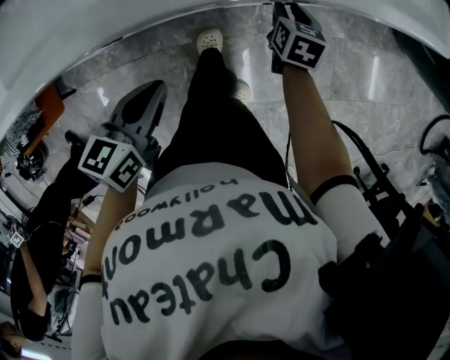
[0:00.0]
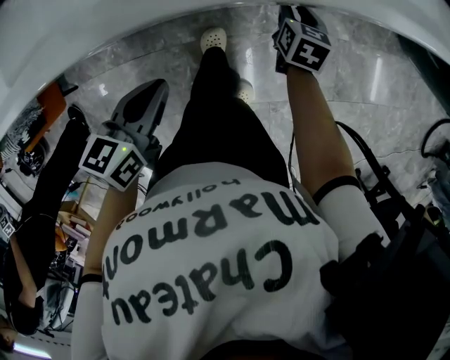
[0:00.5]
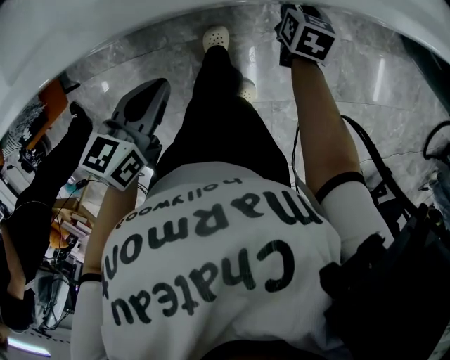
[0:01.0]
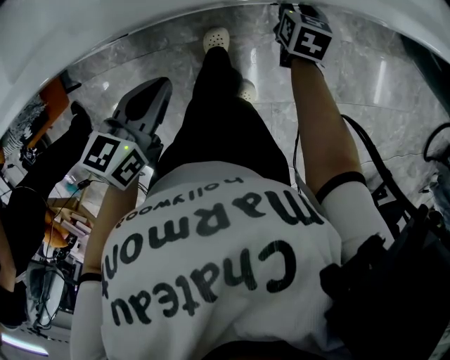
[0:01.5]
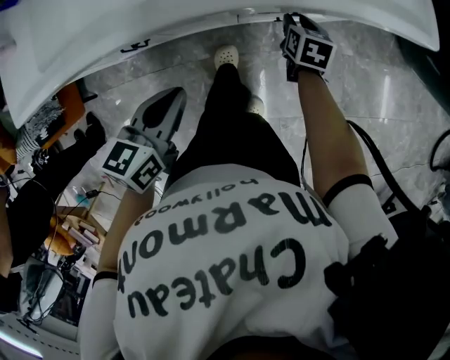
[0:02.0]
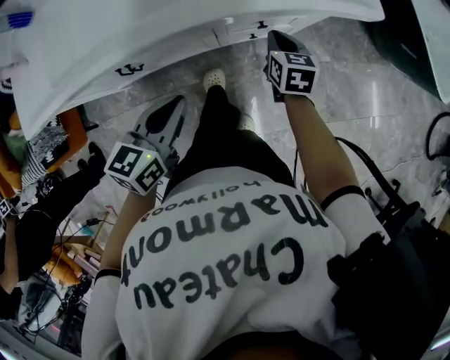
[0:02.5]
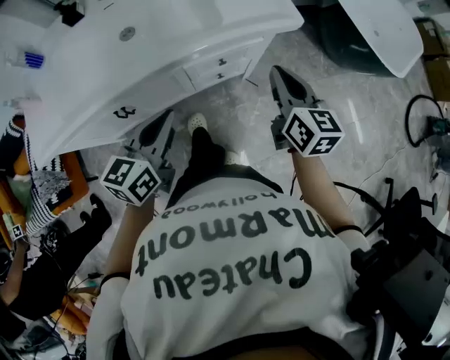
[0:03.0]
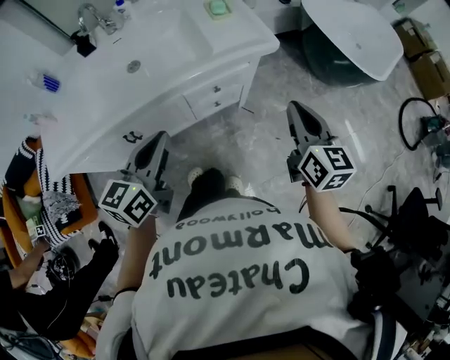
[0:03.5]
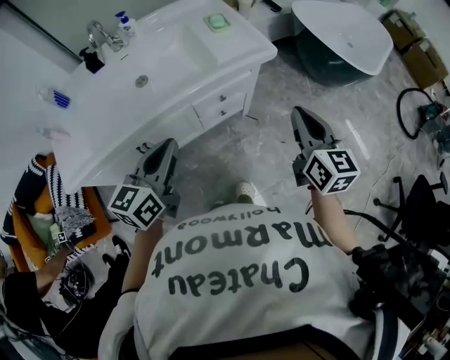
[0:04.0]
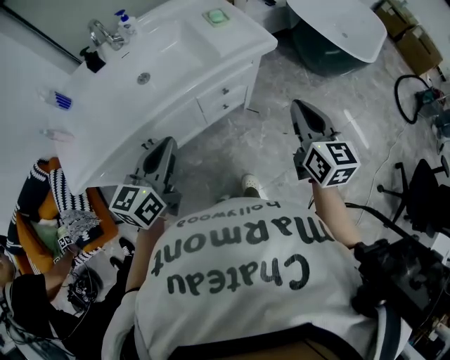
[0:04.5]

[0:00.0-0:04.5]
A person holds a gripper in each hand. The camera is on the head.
0:00.0 to 0:02.0: The grippers make only small movements.
0:02.0 to 0:04.5: The left gripper heads upward, covering about 25 cm, and turns by some 30 degrees, while the right gripper moves upward and backward, approximately 50 cm, angles its fingers upward, by some 40 degrees, and closes up.

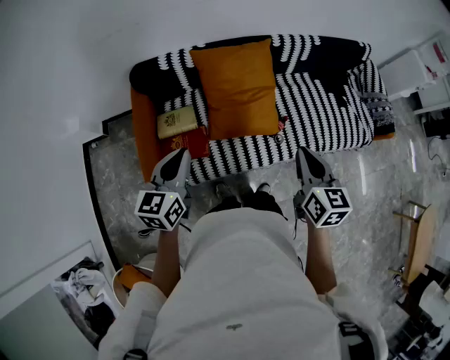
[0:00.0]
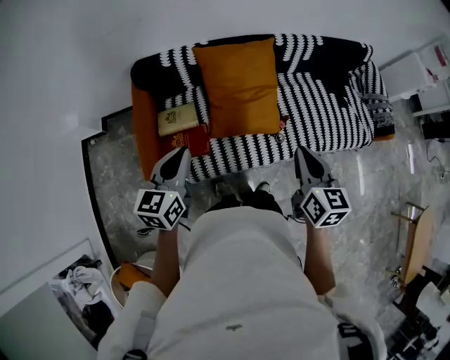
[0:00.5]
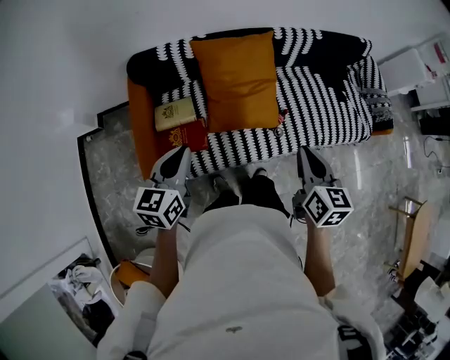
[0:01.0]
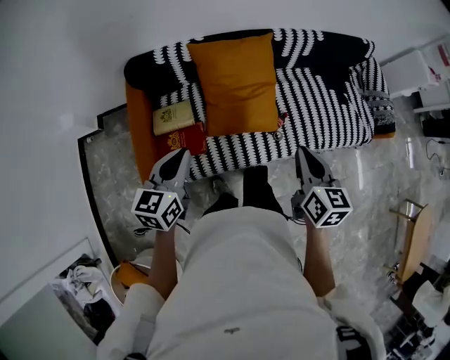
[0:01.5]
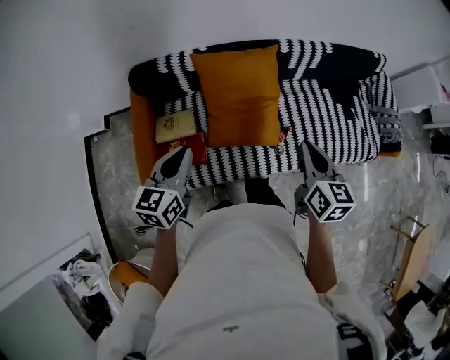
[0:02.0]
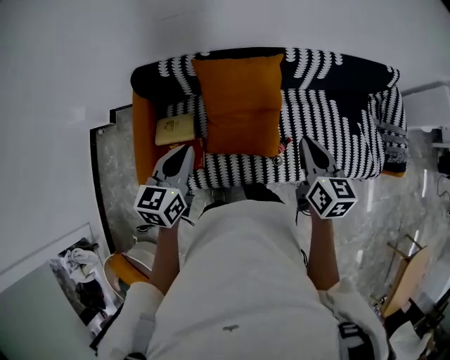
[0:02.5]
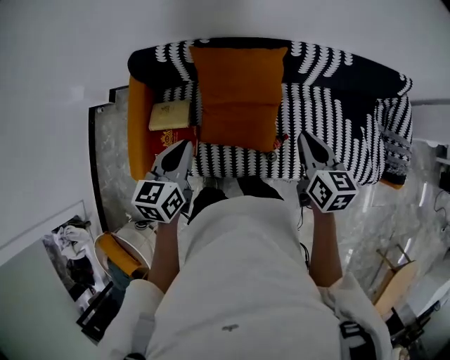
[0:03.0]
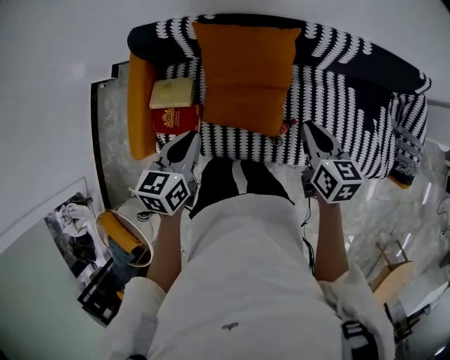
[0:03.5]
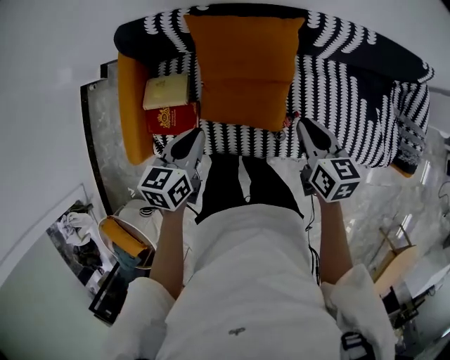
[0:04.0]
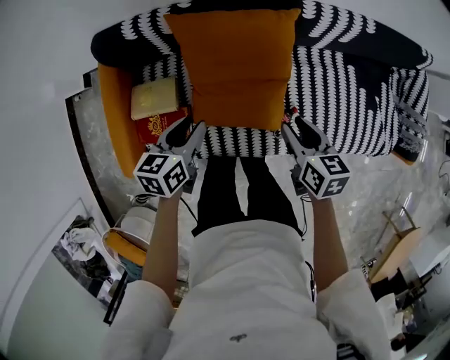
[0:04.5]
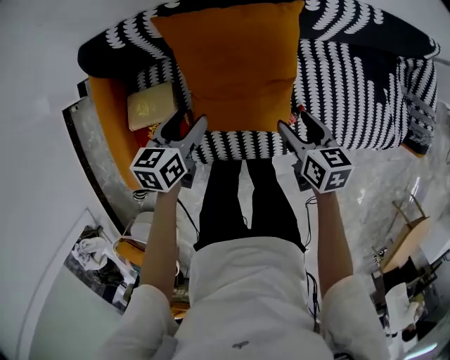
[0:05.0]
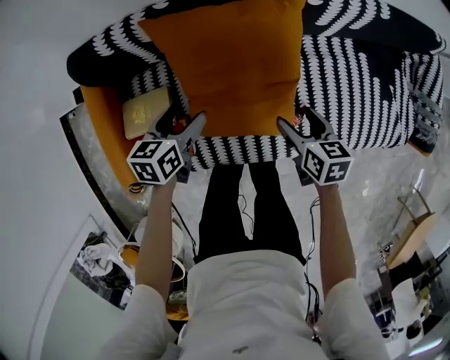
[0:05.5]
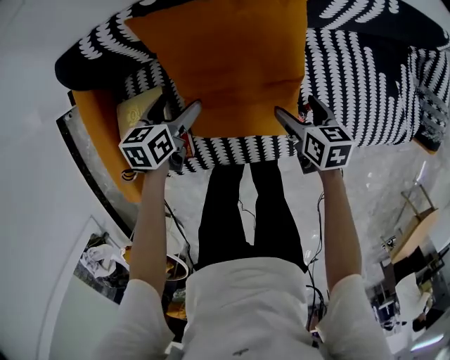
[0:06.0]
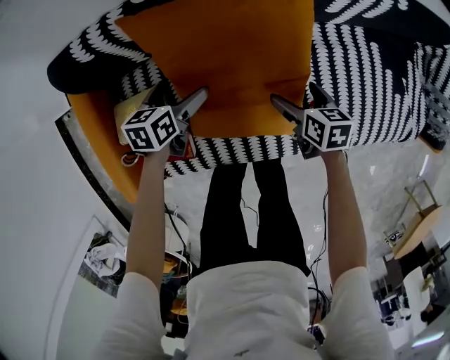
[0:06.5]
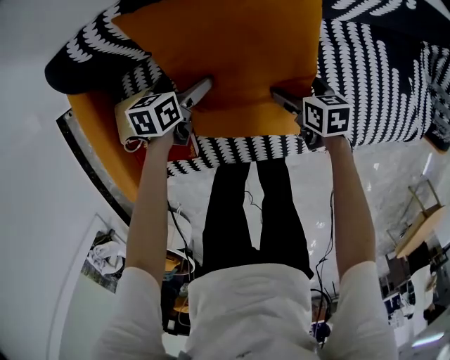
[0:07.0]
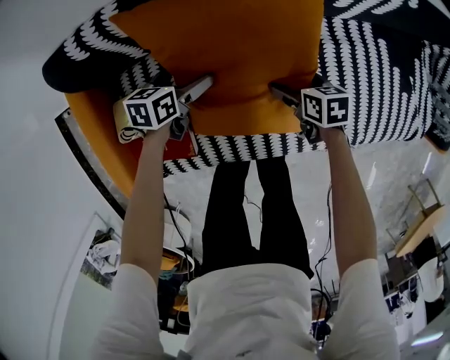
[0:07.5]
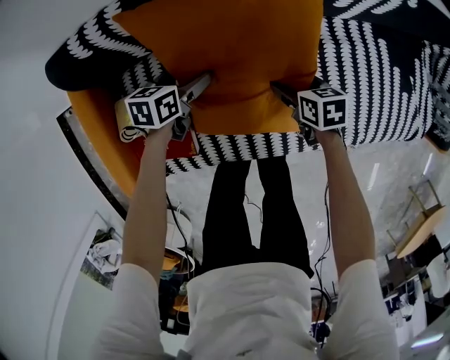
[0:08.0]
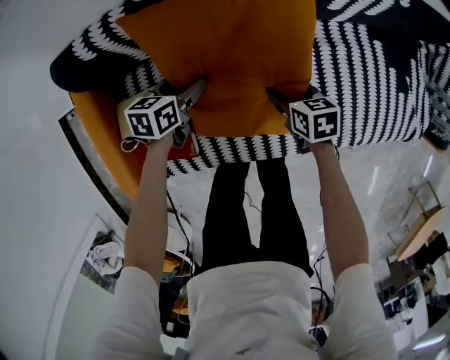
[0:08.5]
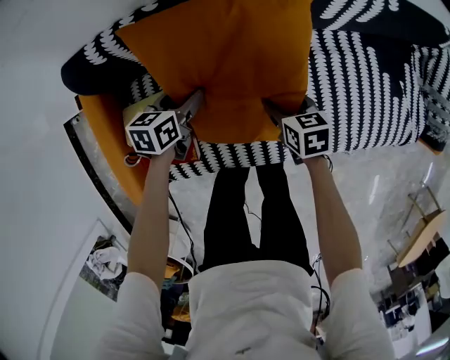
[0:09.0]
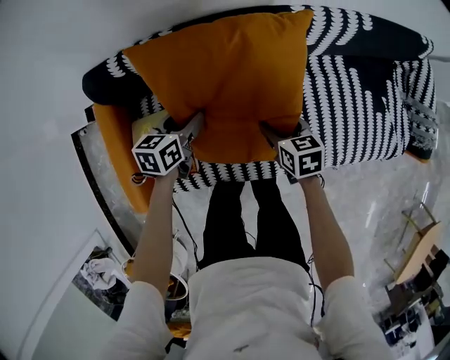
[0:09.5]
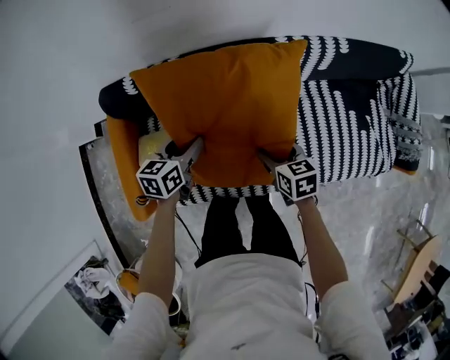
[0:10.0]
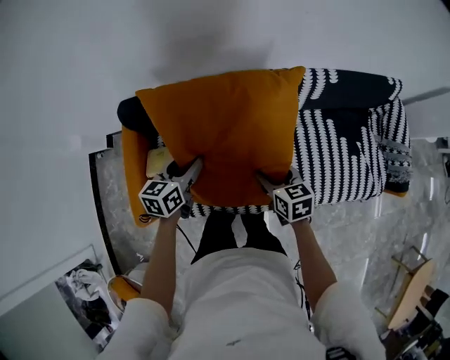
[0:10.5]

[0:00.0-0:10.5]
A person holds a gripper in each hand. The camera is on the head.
0:00.0 to 0:02.0: Both grippers travel together forward, some 10 cm.
0:02.0 to 0:04.0: The left gripper goes roughly 15 cm downward, to the right and forward, and swivels approximately 20 degrees. The right gripper moves downward and forward, approximately 20 cm, and turns by about 30 degrees.
0:04.0 to 0:06.5: The right gripper heads downward, covering roughly 30 cm, and opens, while the left gripper heads downward and forward, covering some 35 cm, and opens.
0:06.5 to 0:08.5: The right gripper closes its fingers. The left gripper closes.
0:08.5 to 0:10.5: Both grippers travel together upward, roughly 30 cm. The left gripper swivels some 20 degrees.

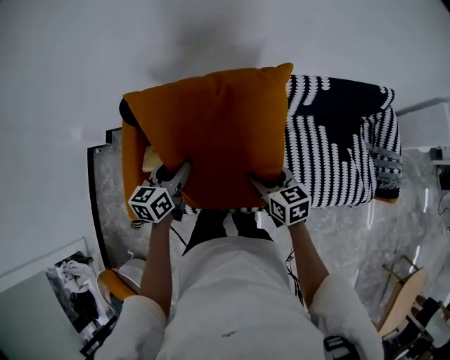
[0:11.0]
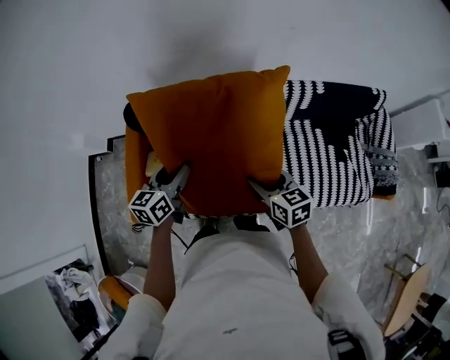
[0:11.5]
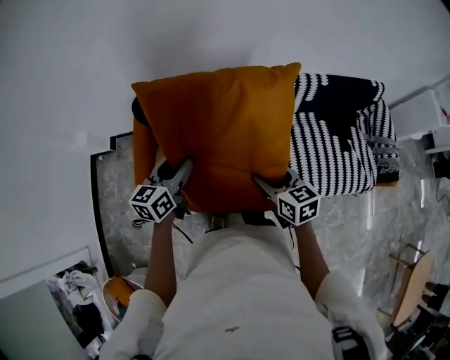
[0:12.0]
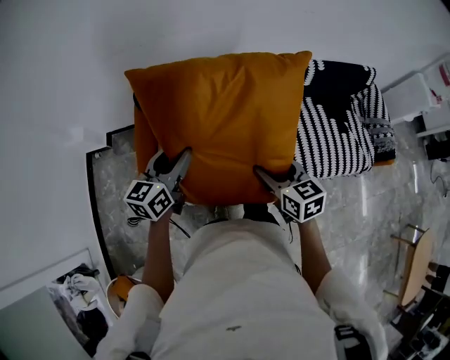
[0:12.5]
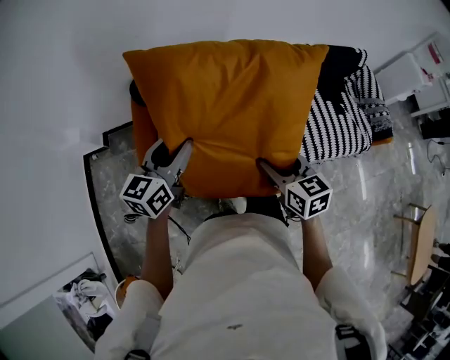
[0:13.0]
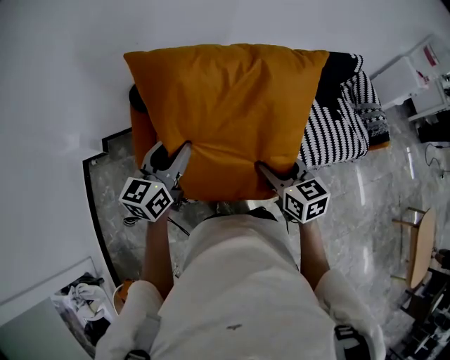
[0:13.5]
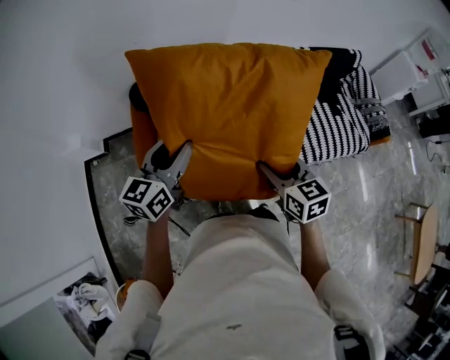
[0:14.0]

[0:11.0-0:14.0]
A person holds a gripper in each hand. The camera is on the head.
0:11.0 to 0:12.5: Both grippers travel together to the left, backward and upward, approximately 20 cm.
0:12.5 to 0:14.0: The left gripper ends up approximately 5 cm from where it was. The right gripper shifts roughly 5 cm backward.

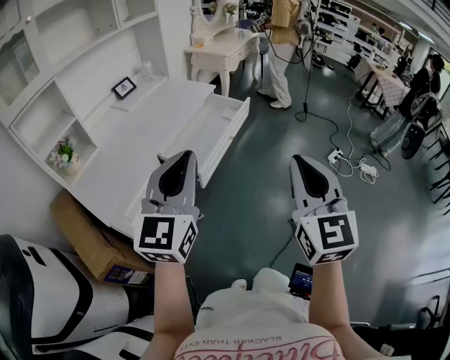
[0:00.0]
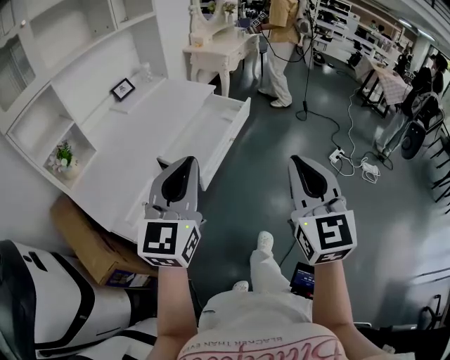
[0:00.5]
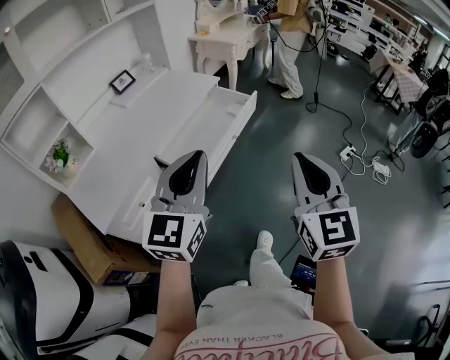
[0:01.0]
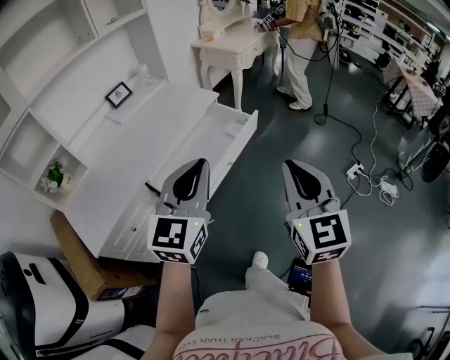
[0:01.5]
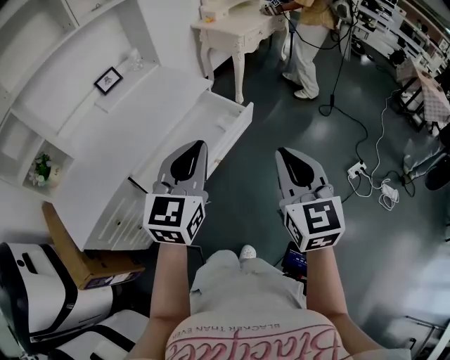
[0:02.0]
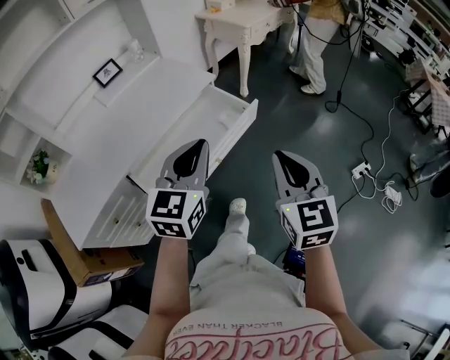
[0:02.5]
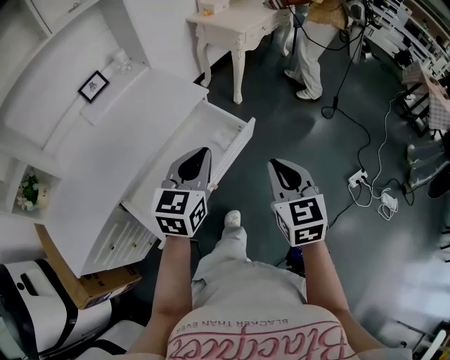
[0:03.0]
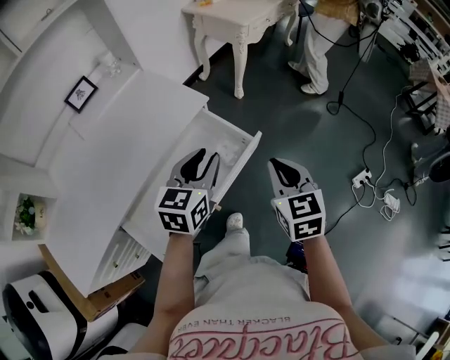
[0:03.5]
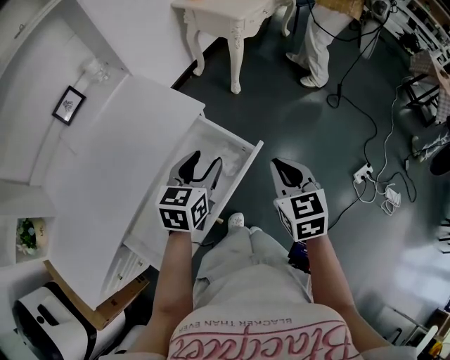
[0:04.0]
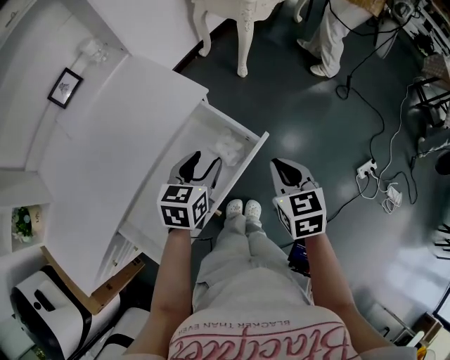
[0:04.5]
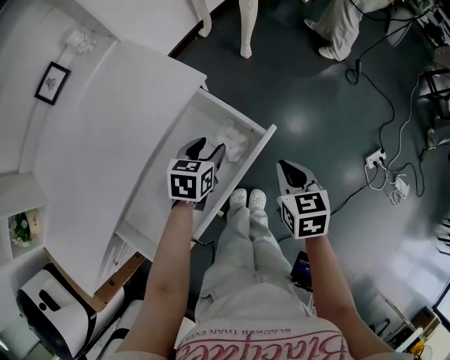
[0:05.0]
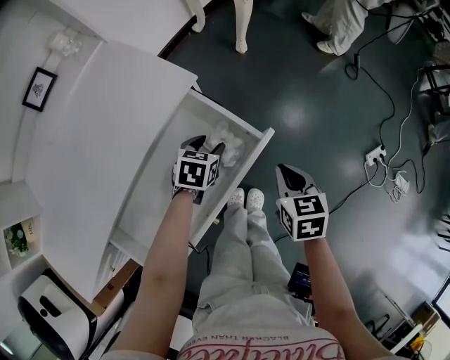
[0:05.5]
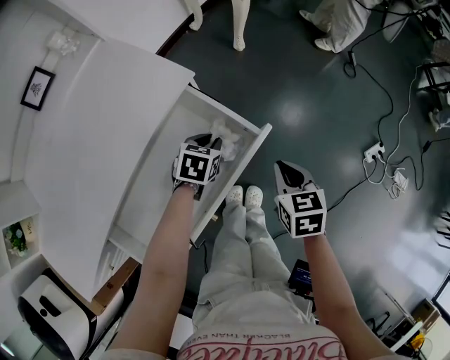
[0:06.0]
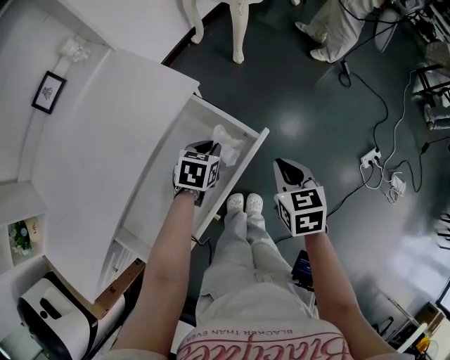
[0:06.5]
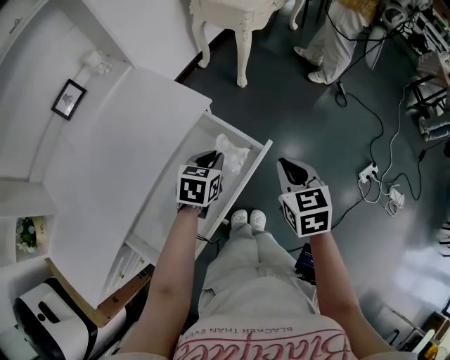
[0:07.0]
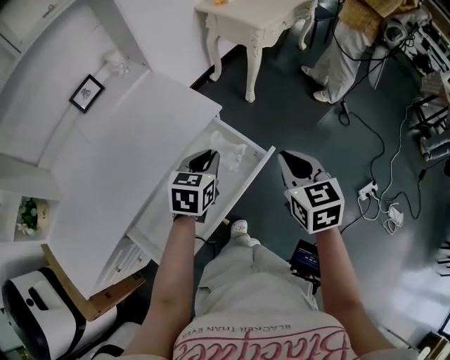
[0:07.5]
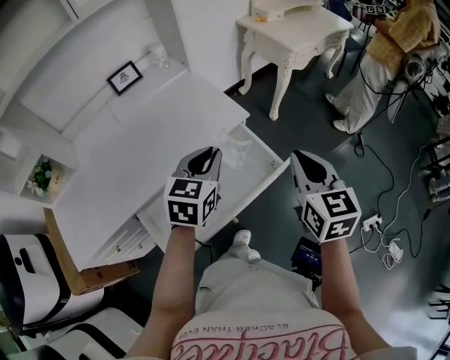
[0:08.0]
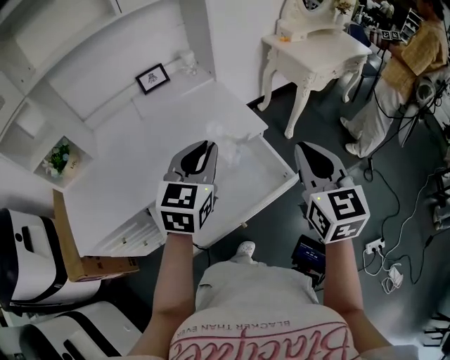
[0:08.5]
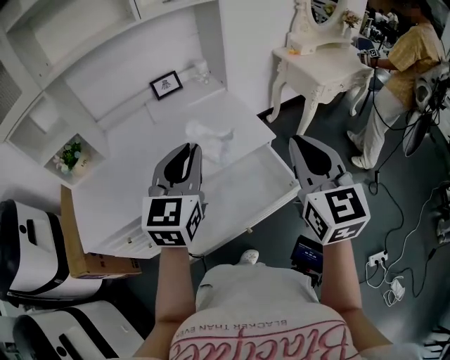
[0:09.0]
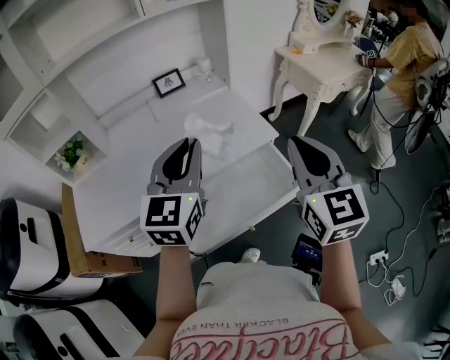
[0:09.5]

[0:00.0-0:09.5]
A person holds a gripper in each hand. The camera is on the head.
0:00.0 to 0:02.0: The right gripper heads forward, covering approximately 35 cm; the left gripper is displaced forward and to the right by about 35 cm.
0:02.0 to 0:04.0: The grippers both shift forward and downward by approximately 35 cm. The left gripper swivels approximately 30 degrees, and opens up. Meanwhile the right gripper changes its angle by about 30 degrees.
0:04.0 to 0:05.5: Both grippers travel together downward, approximately 20 cm. The left gripper swivels some 30 degrees. The right gripper rotates approximately 20 degrees.
0:05.5 to 0:07.5: The grippers both shift upward by about 20 cm. The right gripper swivels about 20 degrees, while the left gripper swivels roughly 20 degrees, and closes its fingers.
0:07.5 to 0:09.5: Both grippers move upward and to the left, about 25 cm. The left gripper angles its fingers upward, by some 30 degrees; the right gripper turns by roughly 30 degrees.
